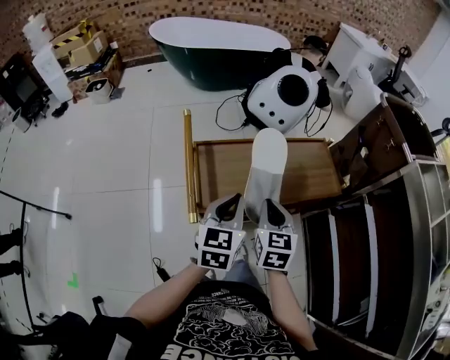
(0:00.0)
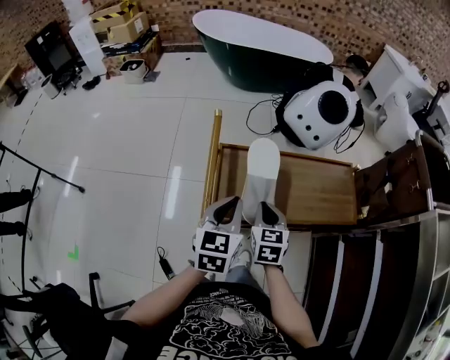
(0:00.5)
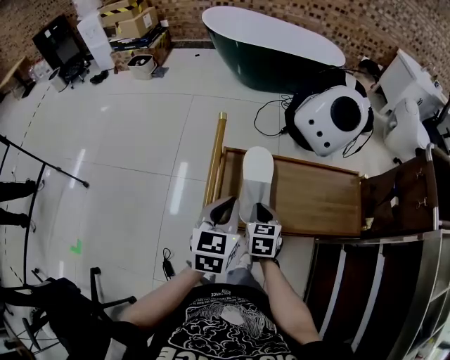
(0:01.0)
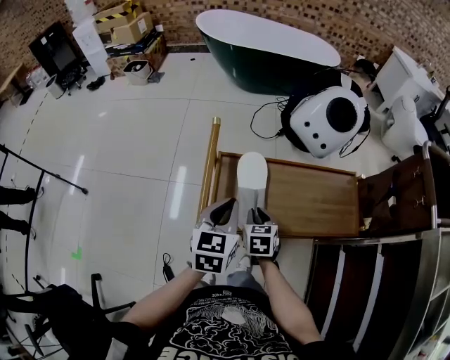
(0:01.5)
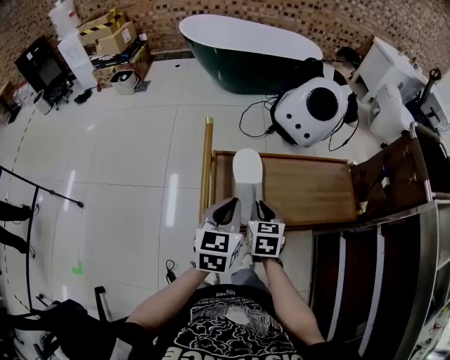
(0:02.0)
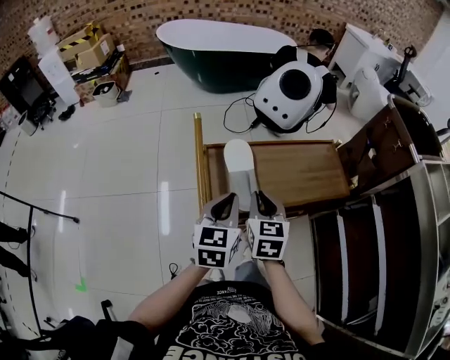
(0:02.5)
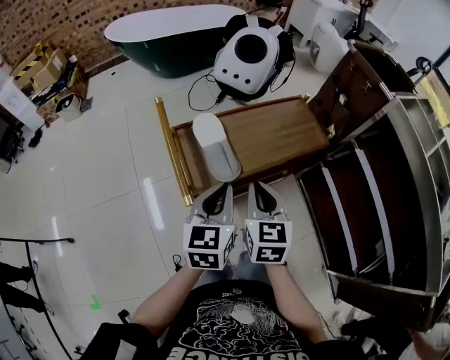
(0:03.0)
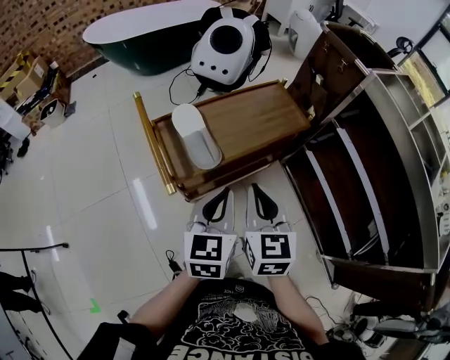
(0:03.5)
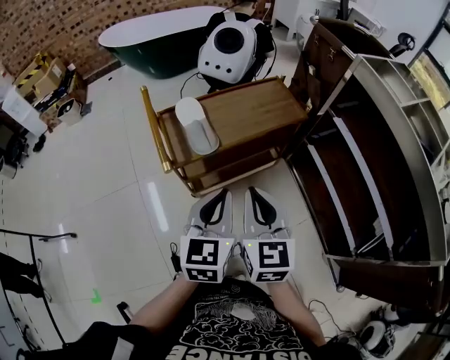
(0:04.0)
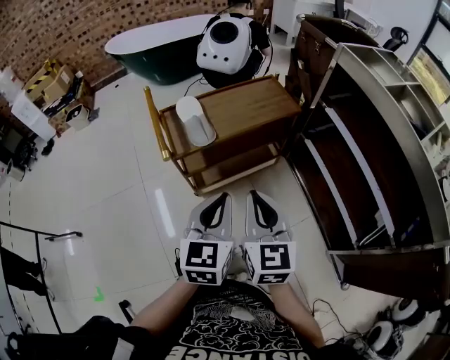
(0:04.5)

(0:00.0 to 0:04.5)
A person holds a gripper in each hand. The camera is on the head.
0:00.0 - 0:02.0: The right gripper goes roughly 15 cm downward, forward and to the left. The left gripper shifts approximately 5 cm to the left.
0:02.0 - 0:04.5: The left gripper is displaced backward and to the right by approximately 35 cm, and rotates roughly 20 degrees; the right gripper travels backward, upward and to the right by roughly 40 cm, and rotates roughly 30 degrees.

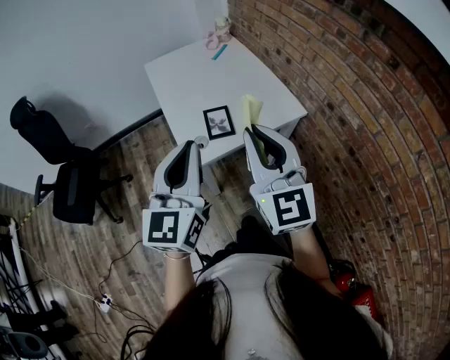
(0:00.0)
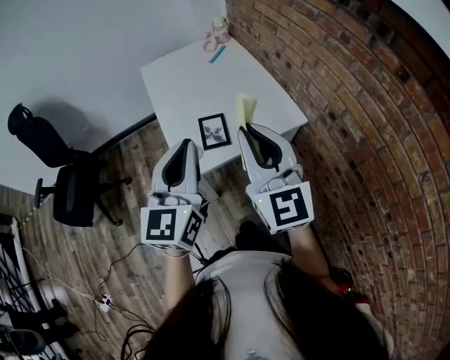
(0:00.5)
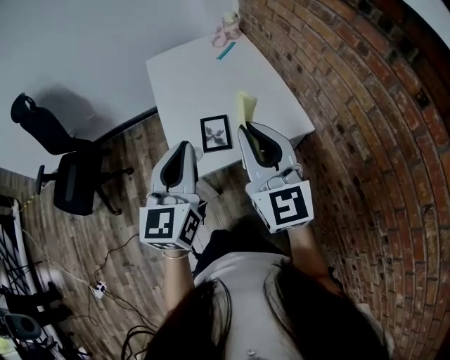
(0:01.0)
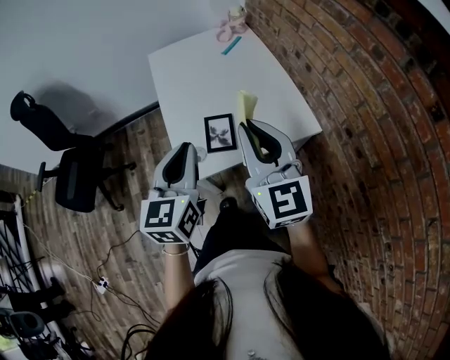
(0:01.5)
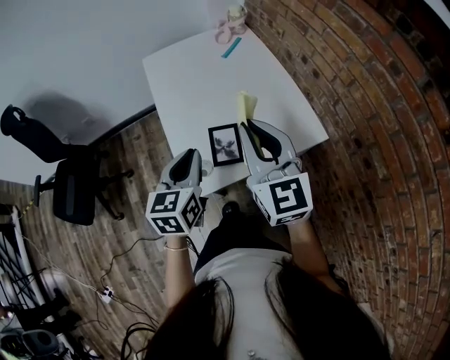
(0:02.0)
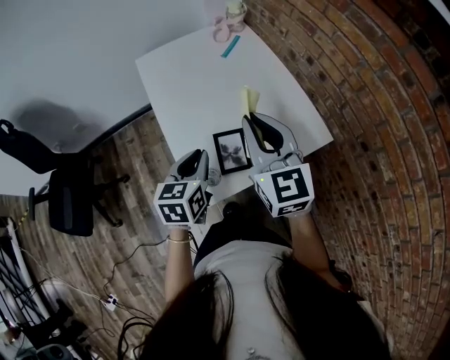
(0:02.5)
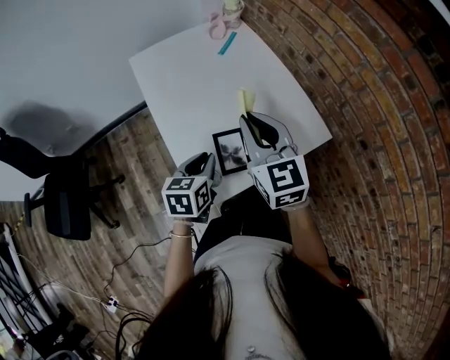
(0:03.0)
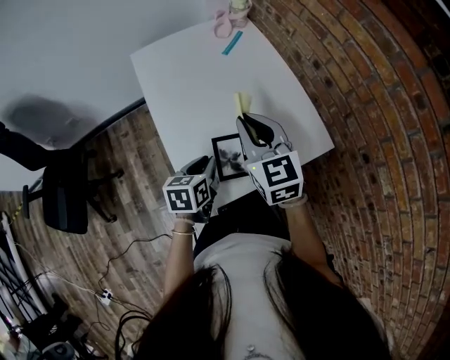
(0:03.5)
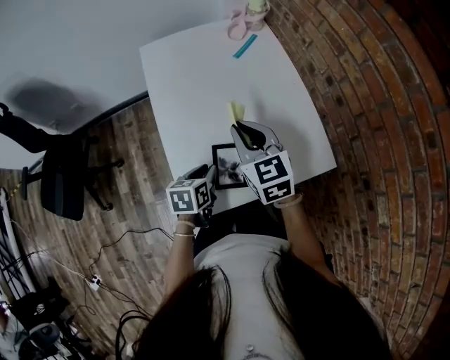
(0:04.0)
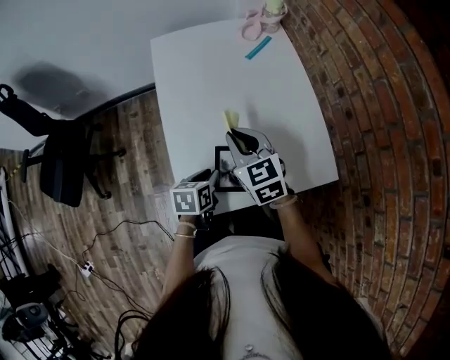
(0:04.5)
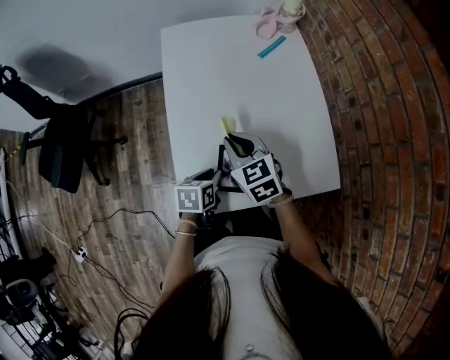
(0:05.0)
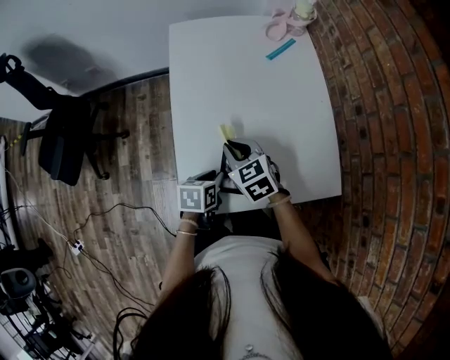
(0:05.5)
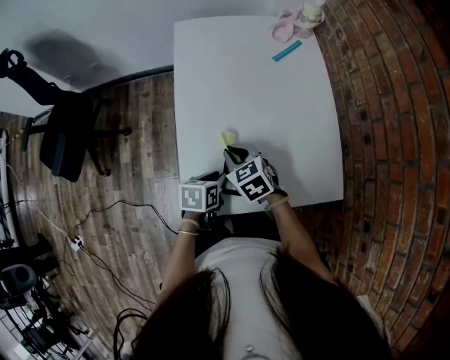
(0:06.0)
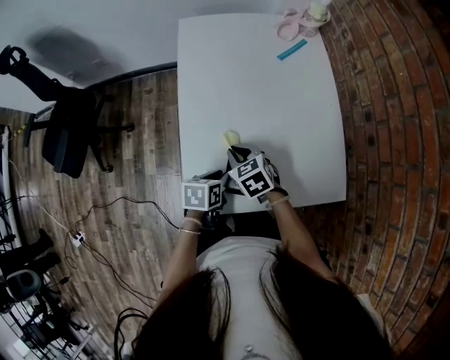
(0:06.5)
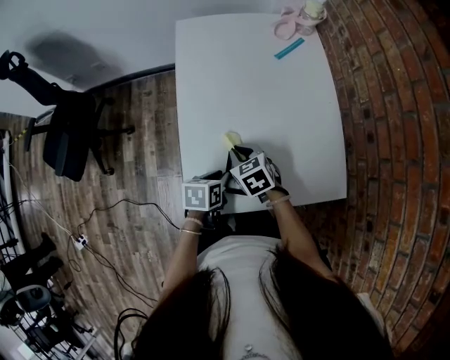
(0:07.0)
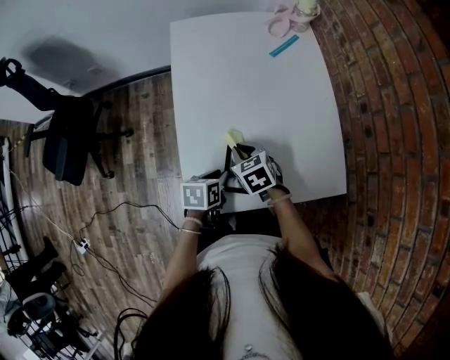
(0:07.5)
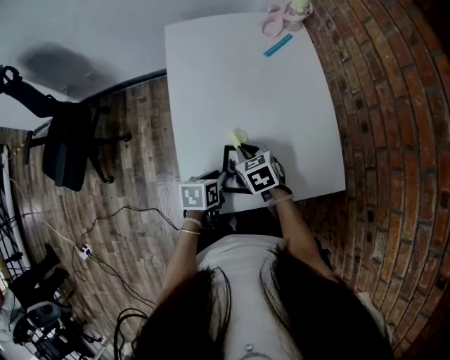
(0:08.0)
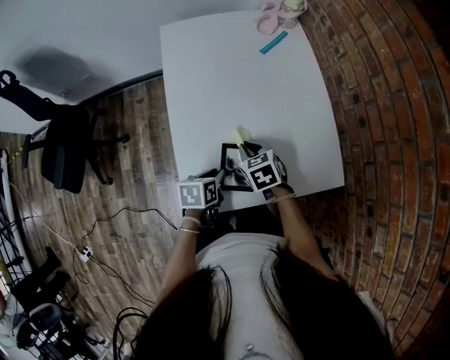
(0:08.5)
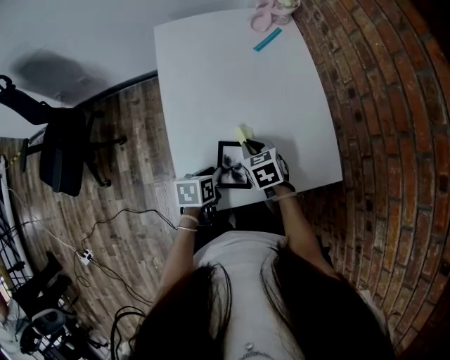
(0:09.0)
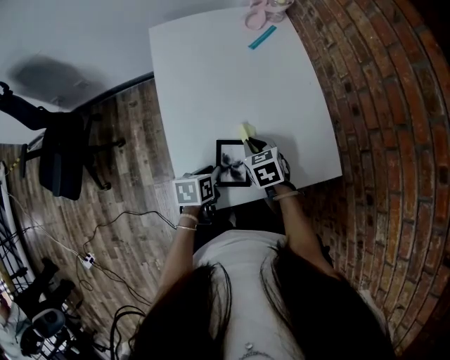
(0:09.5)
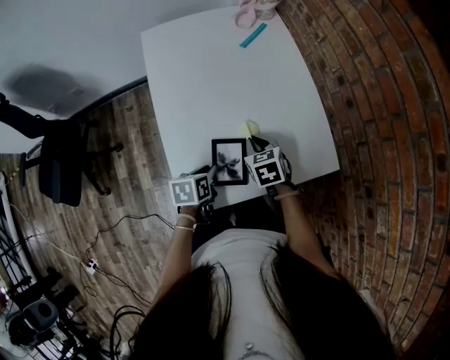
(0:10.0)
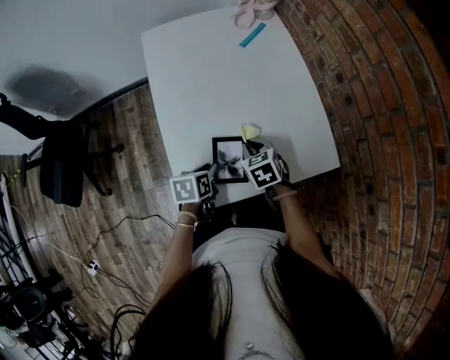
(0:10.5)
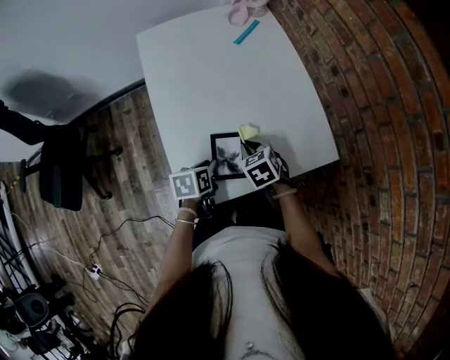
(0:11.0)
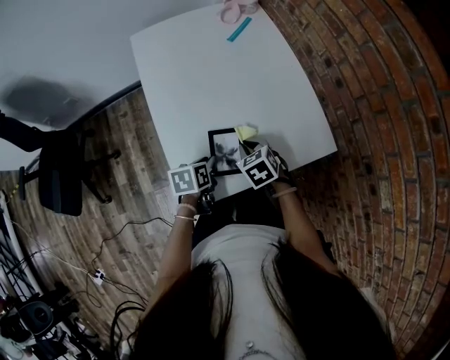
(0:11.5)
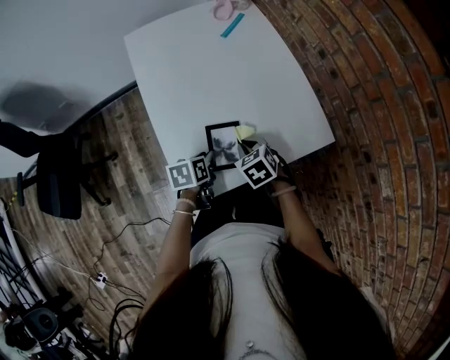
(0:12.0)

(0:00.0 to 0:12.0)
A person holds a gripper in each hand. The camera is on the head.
0:00.0 - 0:02.0: The right gripper shifts some 20 cm forward. Meanwhile the left gripper moves forward and downward, about 25 cm, and swivels roughly 30 degrees.
0:02.0 - 0:04.0: The left gripper travels downward and forward by about 20 cm, and changes its angle by roughly 30 degrees. Meanwhile the right gripper goes about 20 cm forward and downward, and swivels roughly 20 degrees.
0:04.0 - 0:06.0: The right gripper moves downward and to the left, about 15 cm, and rotates approximately 30 degrees. Meanwhile the left gripper moves downward, some 5 cm.
0:06.0 - 0:08.0: The right gripper changes place by about 5 cm.
0:08.0 - 0:10.0: The right gripper travels to the right by some 10 cm.
0:10.0 - 0:12.0: The right gripper moves backward, approximately 5 cm.

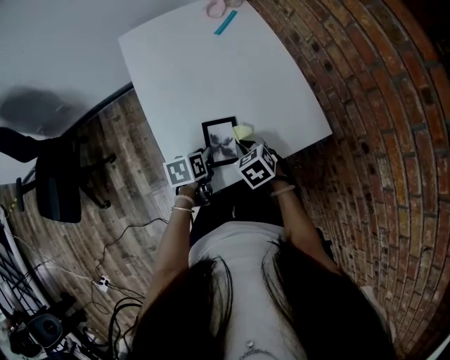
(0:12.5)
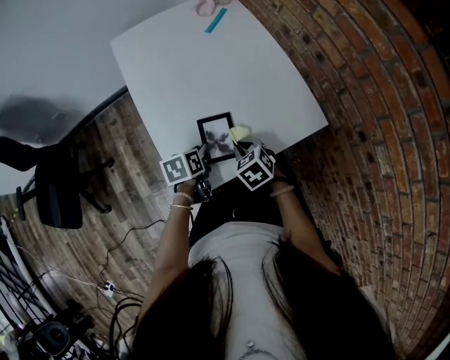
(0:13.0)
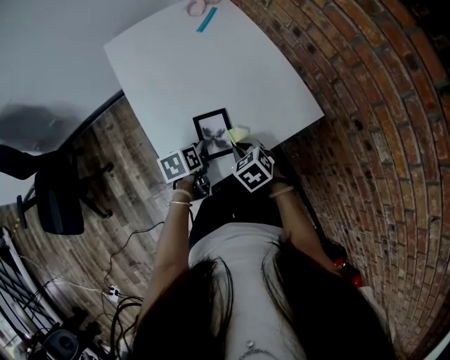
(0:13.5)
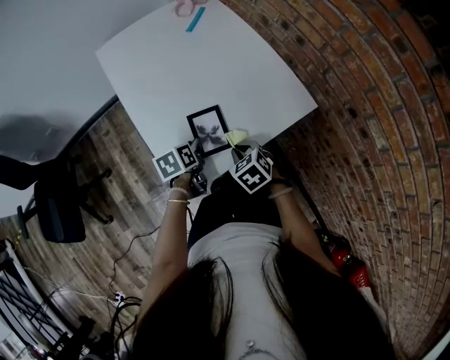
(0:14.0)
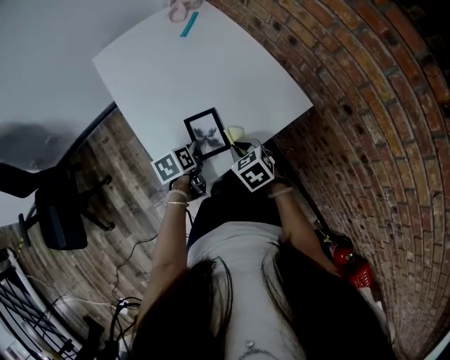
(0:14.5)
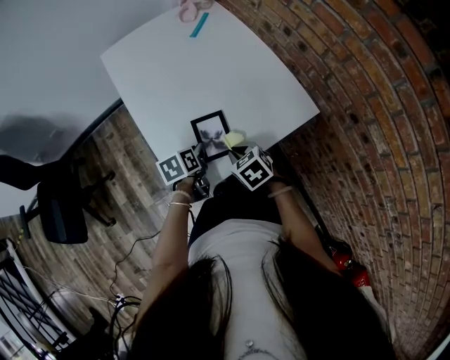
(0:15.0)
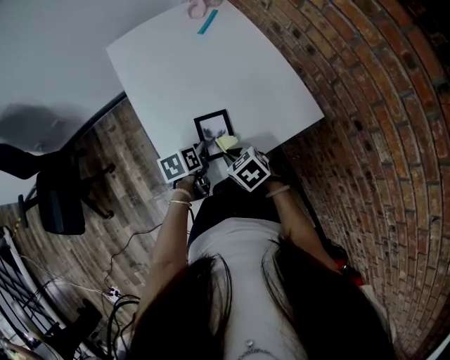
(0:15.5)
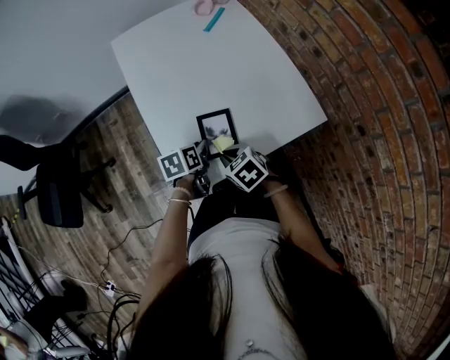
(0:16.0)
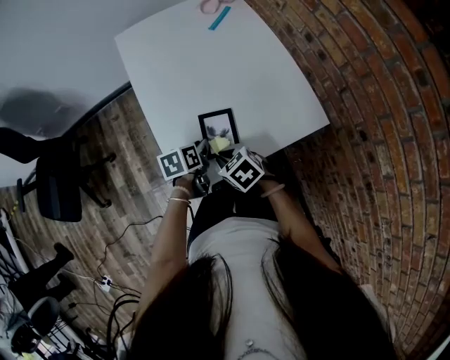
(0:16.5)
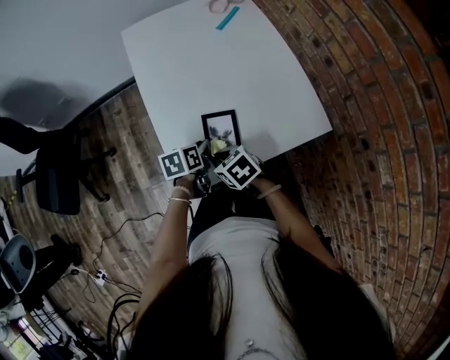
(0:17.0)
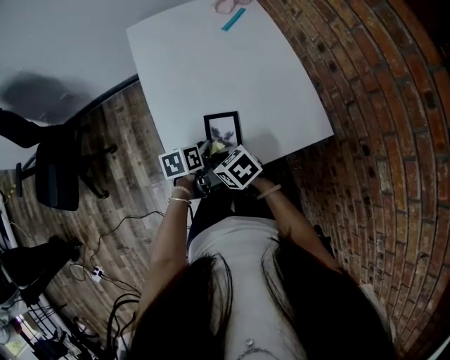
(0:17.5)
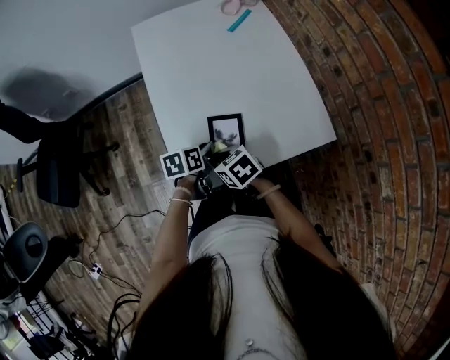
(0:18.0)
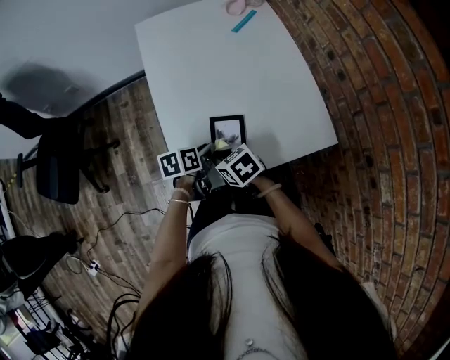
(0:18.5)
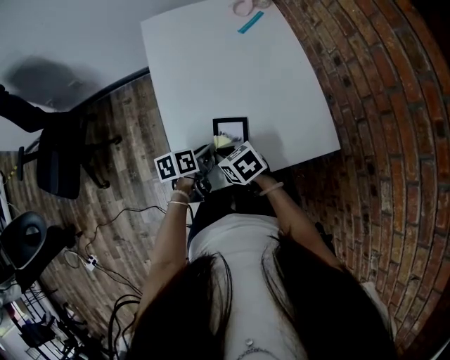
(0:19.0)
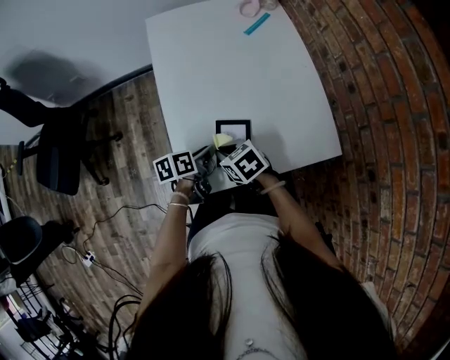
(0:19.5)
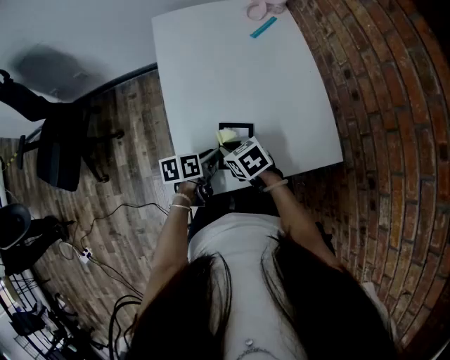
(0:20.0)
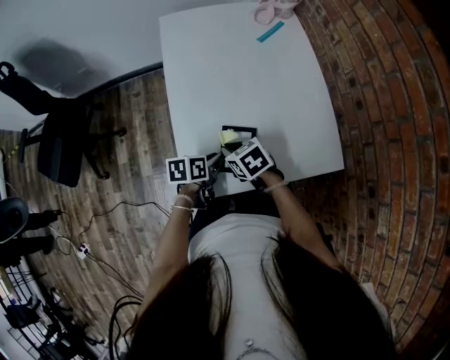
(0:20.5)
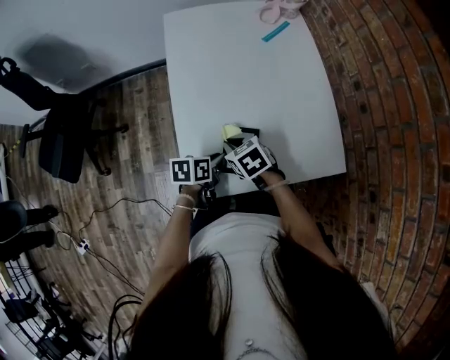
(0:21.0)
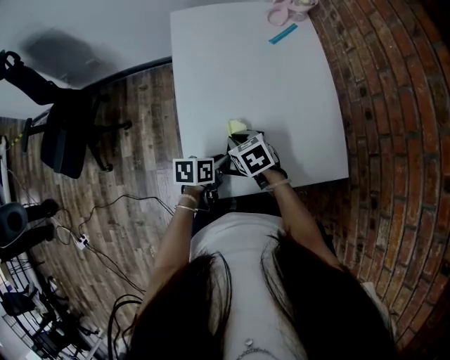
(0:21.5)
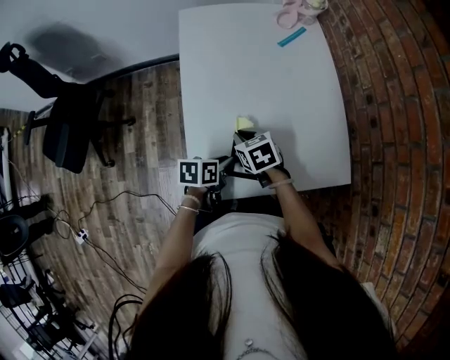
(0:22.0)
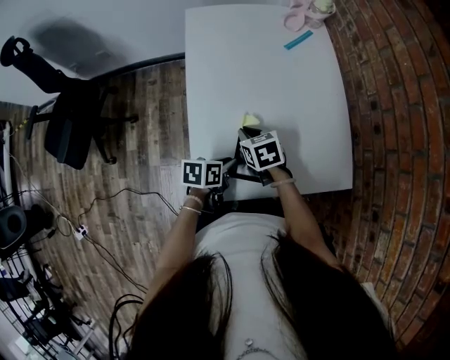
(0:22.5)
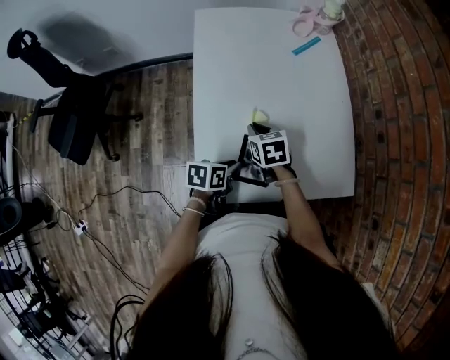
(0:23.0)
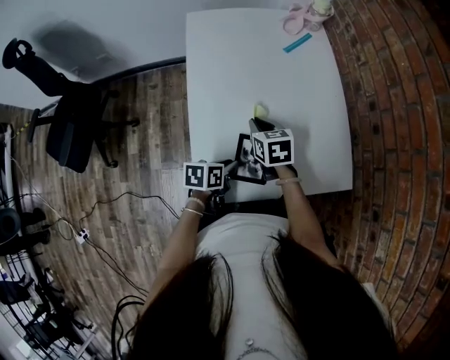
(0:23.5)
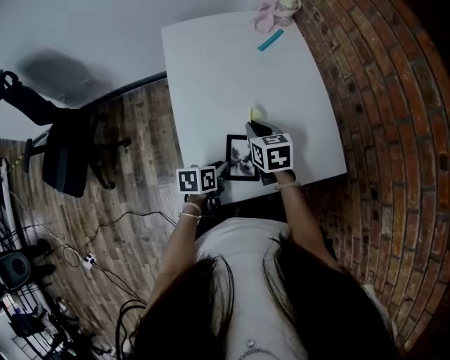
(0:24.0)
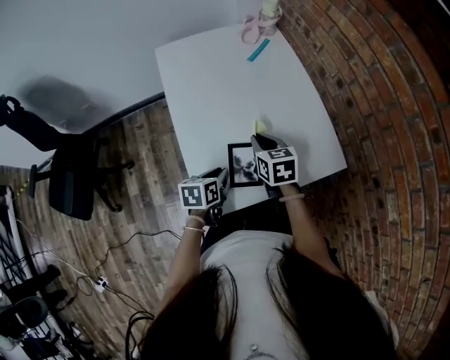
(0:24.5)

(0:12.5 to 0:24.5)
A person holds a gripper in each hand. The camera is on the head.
0:12.5 - 0:14.5: The right gripper is displaced backward by roughly 5 cm.
0:14.5 - 0:16.5: The right gripper is displaced to the left by roughly 10 cm, and swivels about 20 degrees.
0:16.5 - 0:18.5: There are only small adjustments of the grippers.
0:18.5 - 0:20.5: The right gripper goes some 5 cm forward.
0:20.5 - 0:22.5: The right gripper travels forward by some 10 cm.
0:22.5 - 0:24.5: The right gripper goes about 10 cm upward and to the right, and swivels some 30 degrees.
